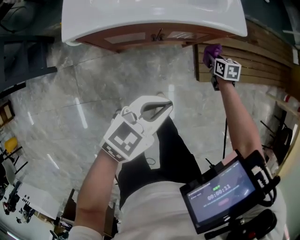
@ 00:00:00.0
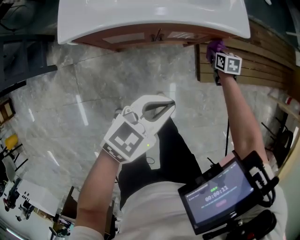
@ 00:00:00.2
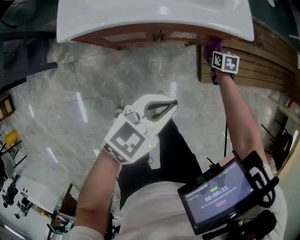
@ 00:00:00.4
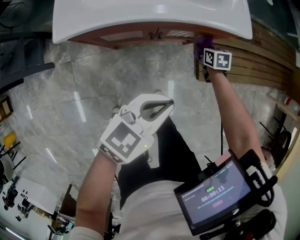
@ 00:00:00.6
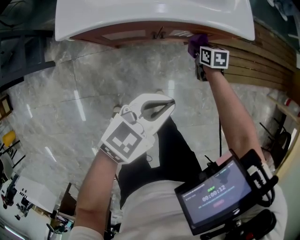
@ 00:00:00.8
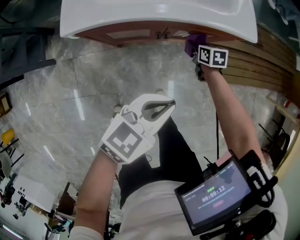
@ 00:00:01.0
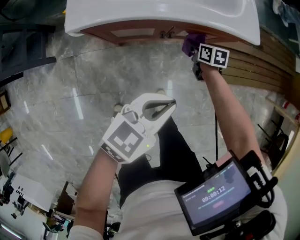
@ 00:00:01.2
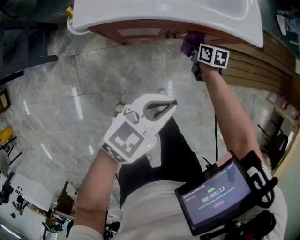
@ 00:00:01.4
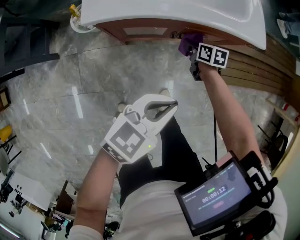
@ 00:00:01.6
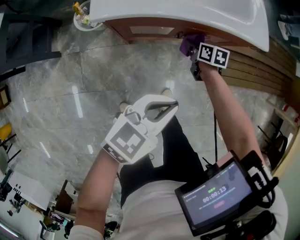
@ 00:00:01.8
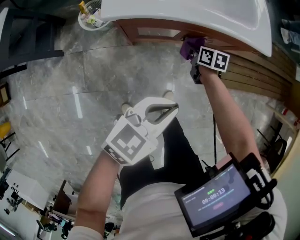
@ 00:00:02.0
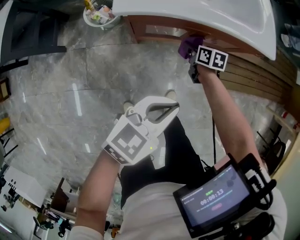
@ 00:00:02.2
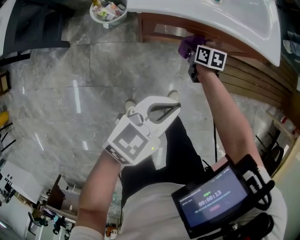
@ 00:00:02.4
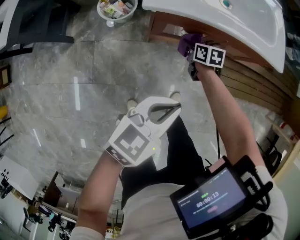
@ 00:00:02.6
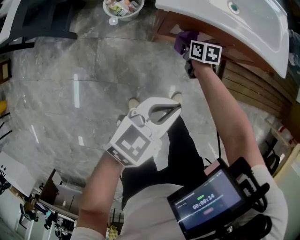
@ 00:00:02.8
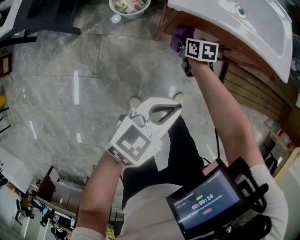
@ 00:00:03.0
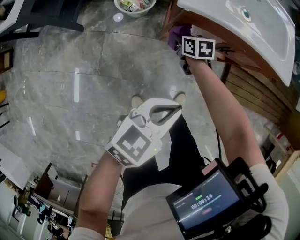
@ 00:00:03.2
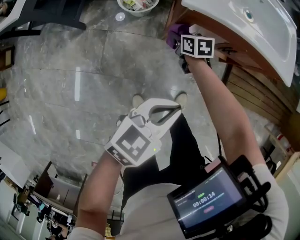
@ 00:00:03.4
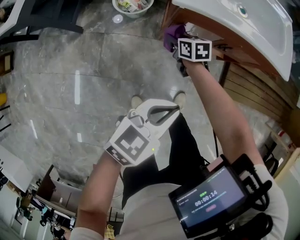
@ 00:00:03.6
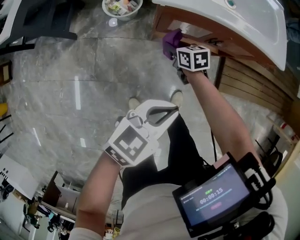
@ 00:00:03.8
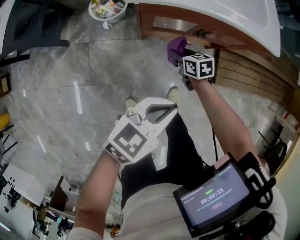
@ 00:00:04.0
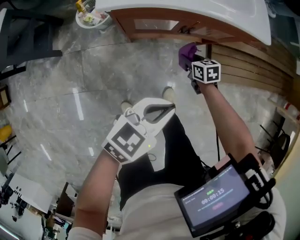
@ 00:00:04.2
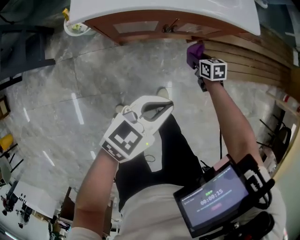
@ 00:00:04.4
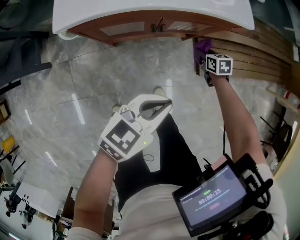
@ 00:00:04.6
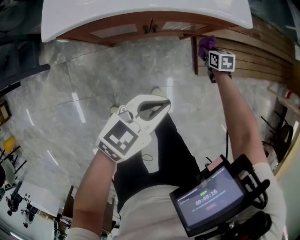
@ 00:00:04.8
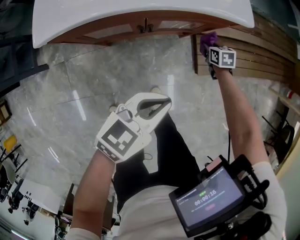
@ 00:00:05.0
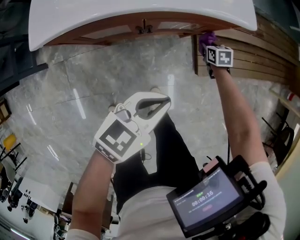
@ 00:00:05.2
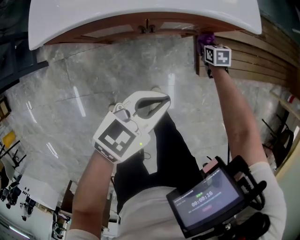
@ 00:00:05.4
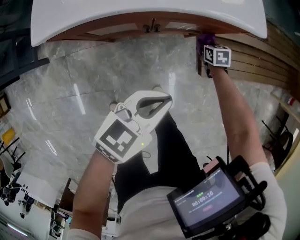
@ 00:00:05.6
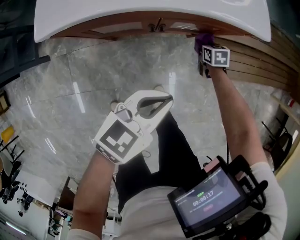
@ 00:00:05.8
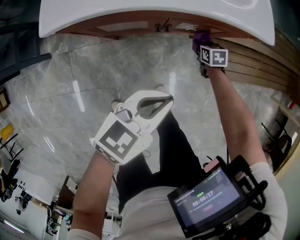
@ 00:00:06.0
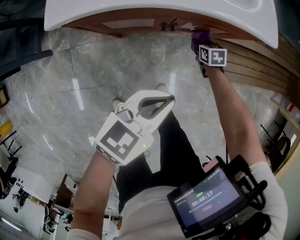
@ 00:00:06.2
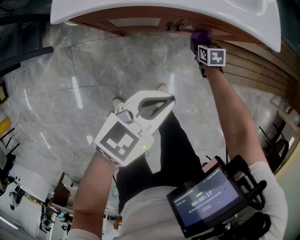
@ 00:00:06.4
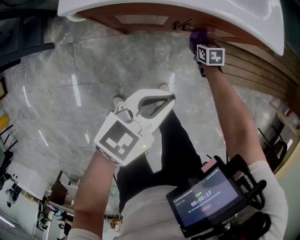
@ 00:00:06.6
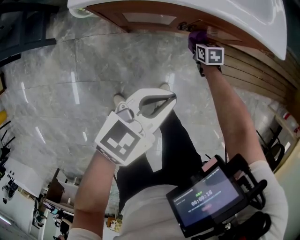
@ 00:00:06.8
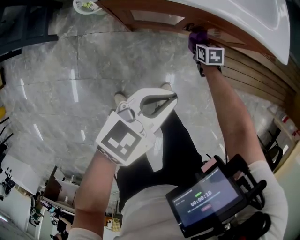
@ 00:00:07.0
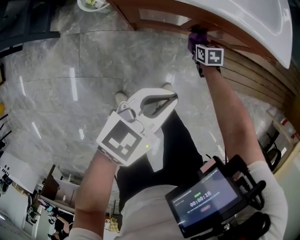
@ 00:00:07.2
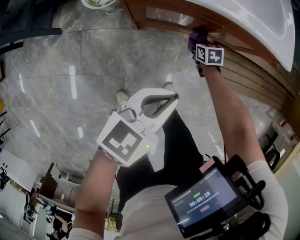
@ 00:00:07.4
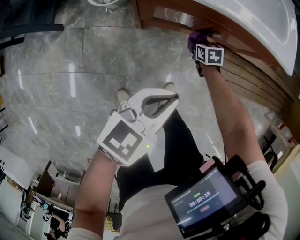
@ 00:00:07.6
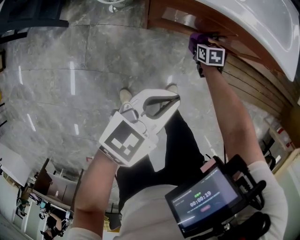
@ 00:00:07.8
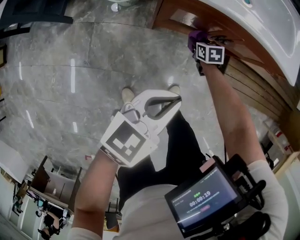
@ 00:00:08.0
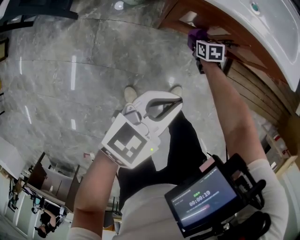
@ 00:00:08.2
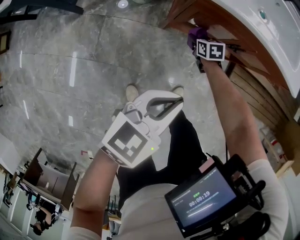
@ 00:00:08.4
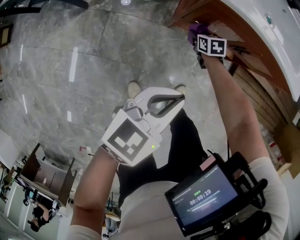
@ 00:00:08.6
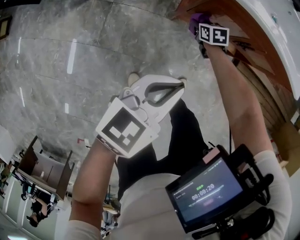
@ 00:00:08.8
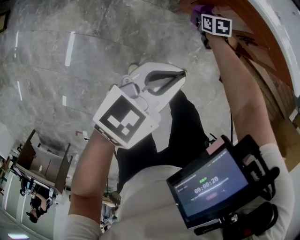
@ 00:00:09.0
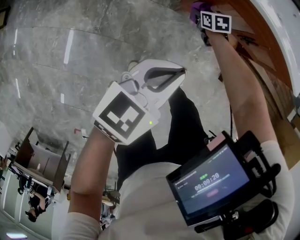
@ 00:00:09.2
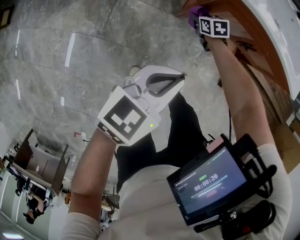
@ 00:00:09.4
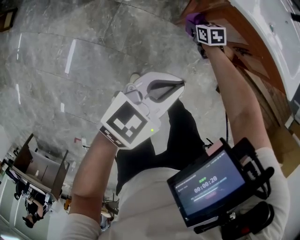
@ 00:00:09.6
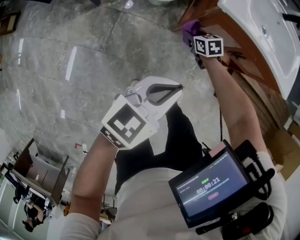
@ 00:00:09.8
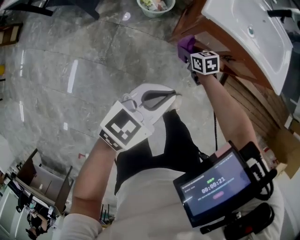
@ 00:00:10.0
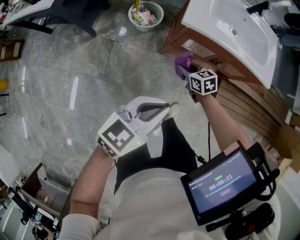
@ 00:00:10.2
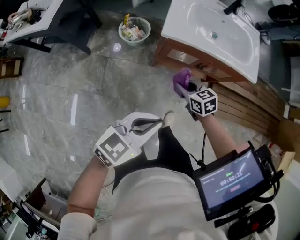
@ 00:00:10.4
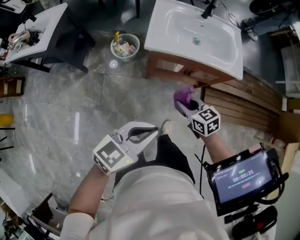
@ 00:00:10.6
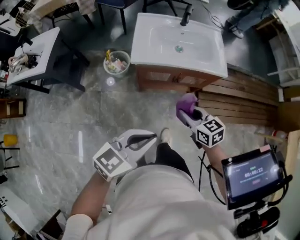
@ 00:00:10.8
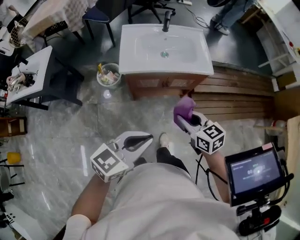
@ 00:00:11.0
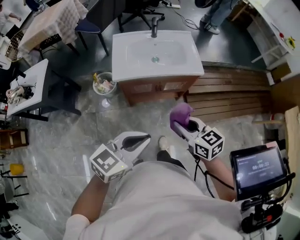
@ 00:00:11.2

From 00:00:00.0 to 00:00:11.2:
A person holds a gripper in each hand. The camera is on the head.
From 00:00:00.0 to 00:00:01.6: The right gripper goes about 20 cm to the left; the left gripper is displaced to the left by approximately 5 cm.
From 00:00:01.6 to 00:00:03.2: The right gripper moves to the left, some 35 cm, and rotates approximately 20 degrees. The left gripper travels to the left by about 20 cm.
From 00:00:03.2 to 00:00:04.8: The right gripper goes about 50 cm to the right, and turns by approximately 20 degrees. The left gripper heads to the right, covering roughly 30 cm.
From 00:00:04.8 to 00:00:06.4: The right gripper moves to the left, some 15 cm. The left gripper travels to the left by roughly 5 cm.
From 00:00:06.4 to 00:00:08.0: The left gripper shifts about 20 cm to the left and backward. The right gripper goes roughly 25 cm to the left.
From 00:00:08.0 to 00:00:09.6: The right gripper heads to the left, covering about 20 cm. The left gripper is displaced to the left by some 15 cm.
From 00:00:09.6 to 00:00:11.2: The right gripper travels upward by roughly 60 cm, and changes its angle by some 40 degrees; the left gripper goes roughly 30 cm upward, and changes its angle by roughly 30 degrees.

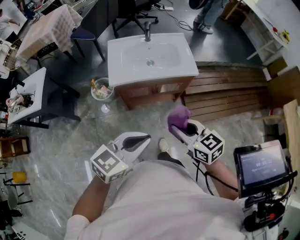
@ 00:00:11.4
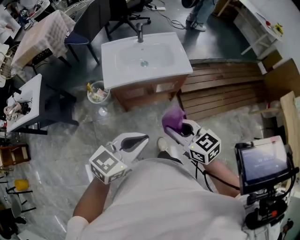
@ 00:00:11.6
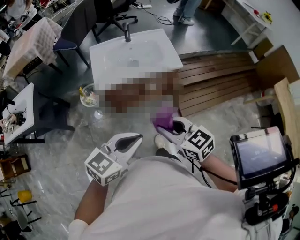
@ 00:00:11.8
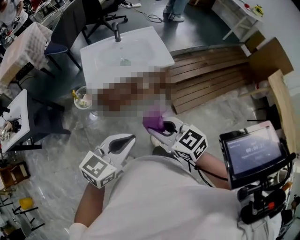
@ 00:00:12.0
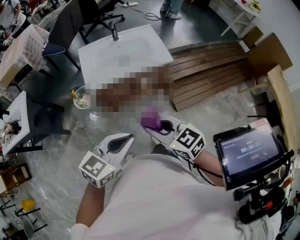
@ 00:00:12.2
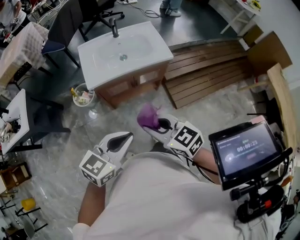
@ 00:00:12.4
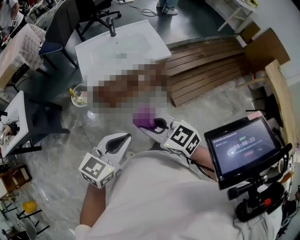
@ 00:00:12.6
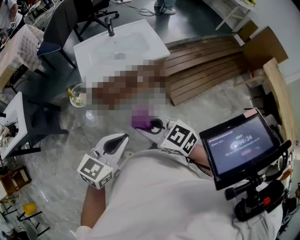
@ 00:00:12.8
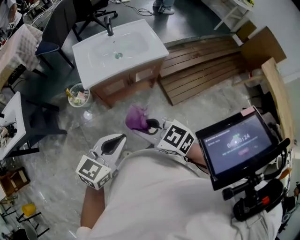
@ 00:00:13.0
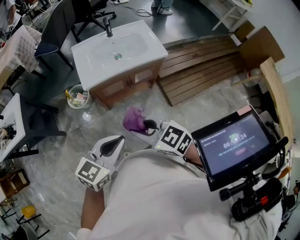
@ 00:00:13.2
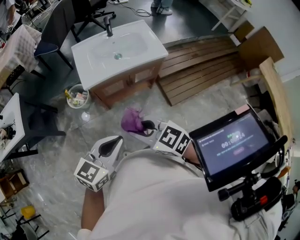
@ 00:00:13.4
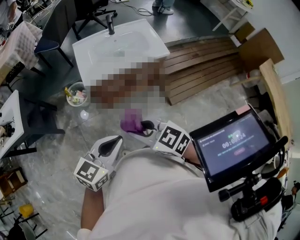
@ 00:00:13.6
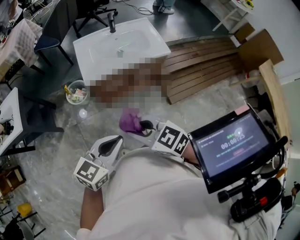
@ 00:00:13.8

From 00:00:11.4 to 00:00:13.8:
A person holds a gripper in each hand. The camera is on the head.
From 00:00:11.4 to 00:00:12.6: The right gripper goes some 10 cm to the left and backward.
From 00:00:12.6 to 00:00:13.8: The two grippers go some 10 cm to the left.

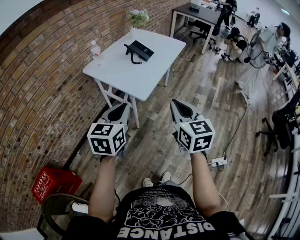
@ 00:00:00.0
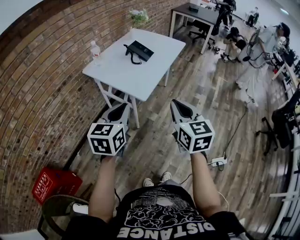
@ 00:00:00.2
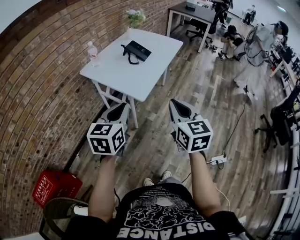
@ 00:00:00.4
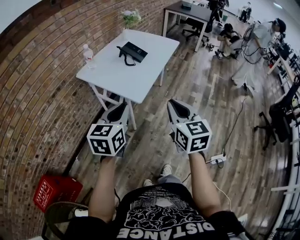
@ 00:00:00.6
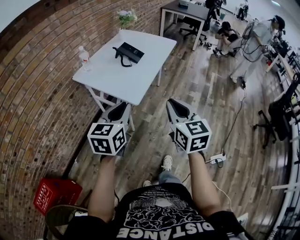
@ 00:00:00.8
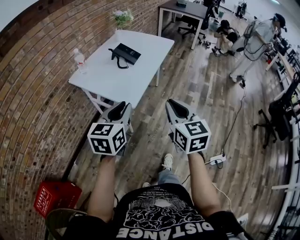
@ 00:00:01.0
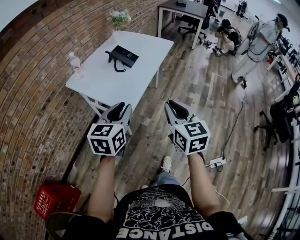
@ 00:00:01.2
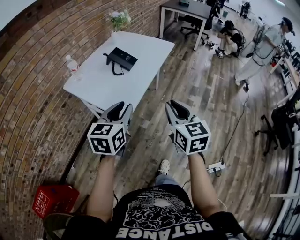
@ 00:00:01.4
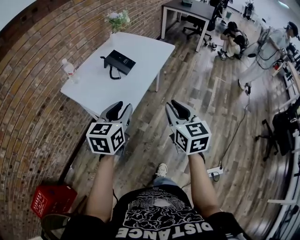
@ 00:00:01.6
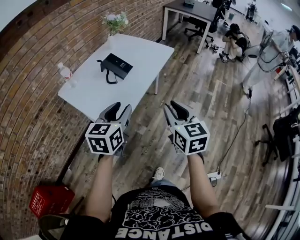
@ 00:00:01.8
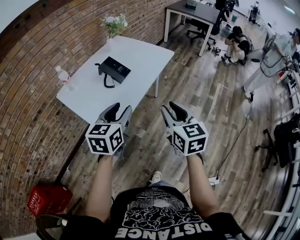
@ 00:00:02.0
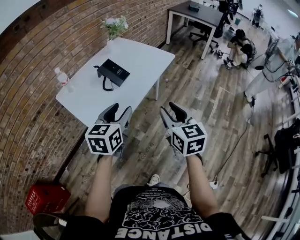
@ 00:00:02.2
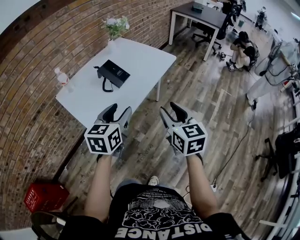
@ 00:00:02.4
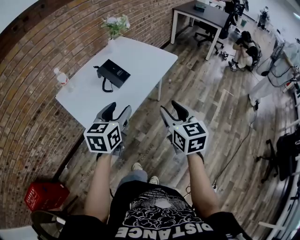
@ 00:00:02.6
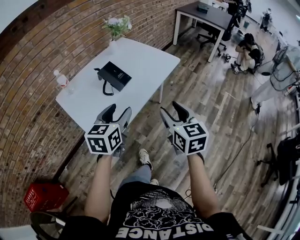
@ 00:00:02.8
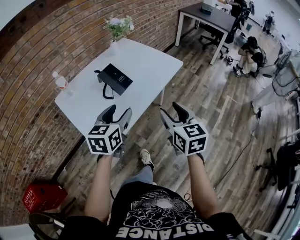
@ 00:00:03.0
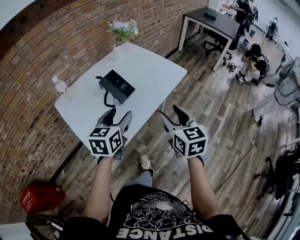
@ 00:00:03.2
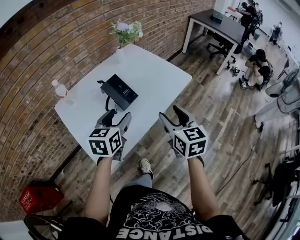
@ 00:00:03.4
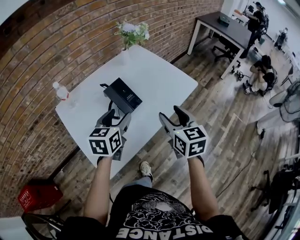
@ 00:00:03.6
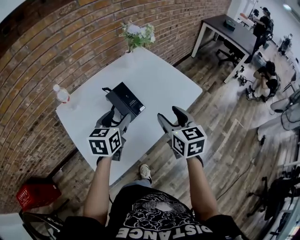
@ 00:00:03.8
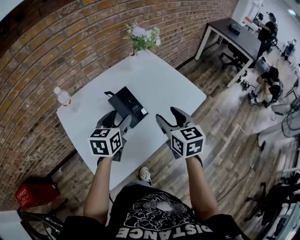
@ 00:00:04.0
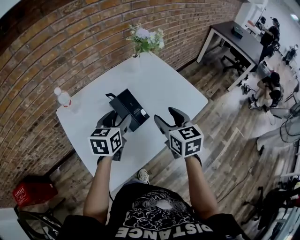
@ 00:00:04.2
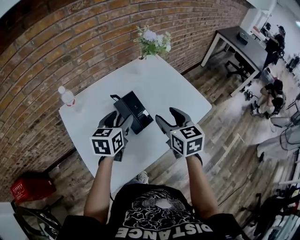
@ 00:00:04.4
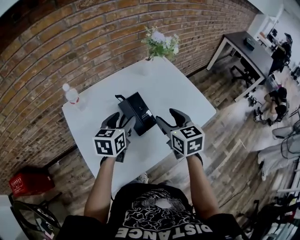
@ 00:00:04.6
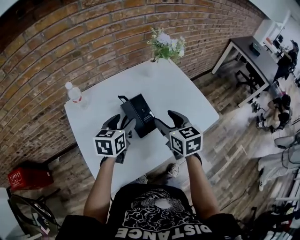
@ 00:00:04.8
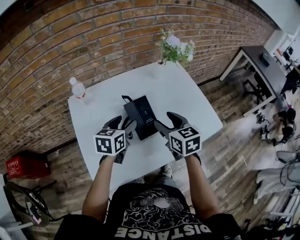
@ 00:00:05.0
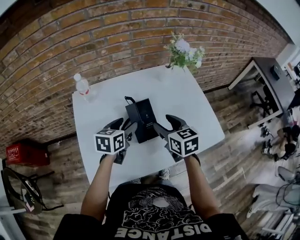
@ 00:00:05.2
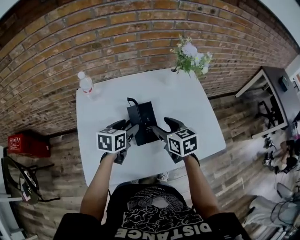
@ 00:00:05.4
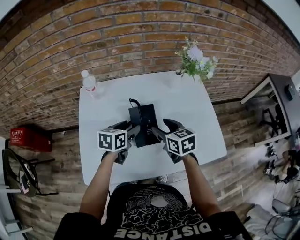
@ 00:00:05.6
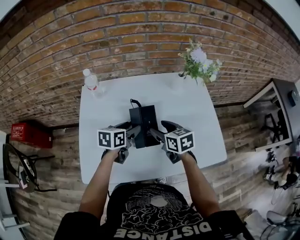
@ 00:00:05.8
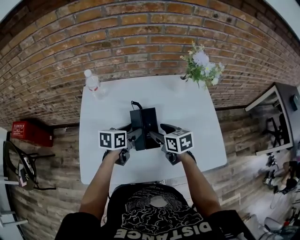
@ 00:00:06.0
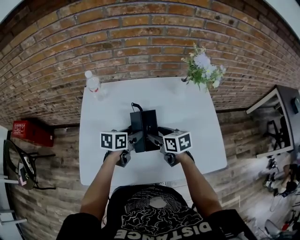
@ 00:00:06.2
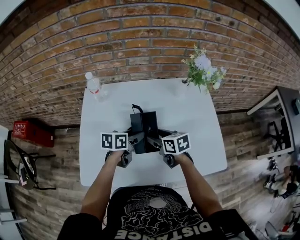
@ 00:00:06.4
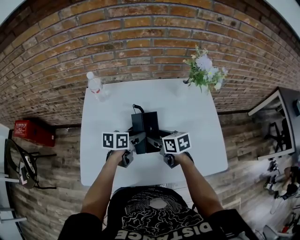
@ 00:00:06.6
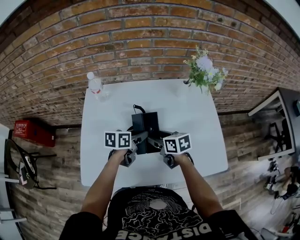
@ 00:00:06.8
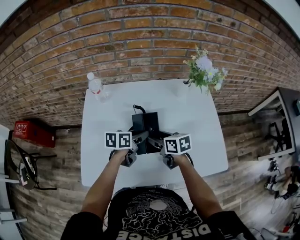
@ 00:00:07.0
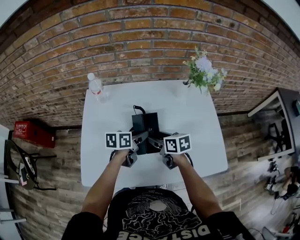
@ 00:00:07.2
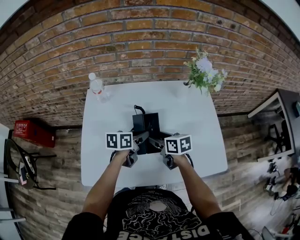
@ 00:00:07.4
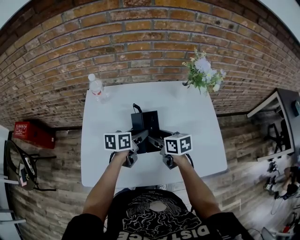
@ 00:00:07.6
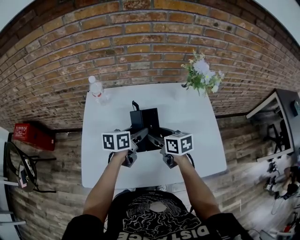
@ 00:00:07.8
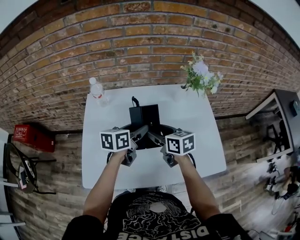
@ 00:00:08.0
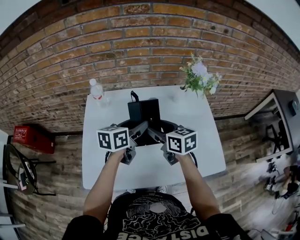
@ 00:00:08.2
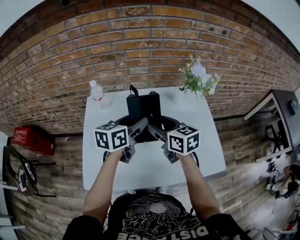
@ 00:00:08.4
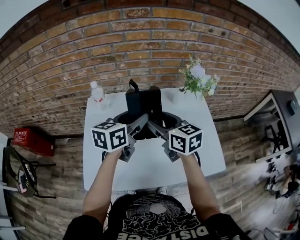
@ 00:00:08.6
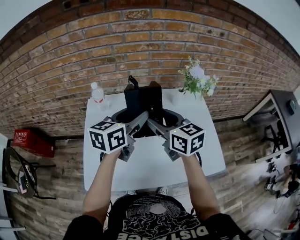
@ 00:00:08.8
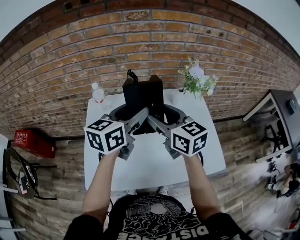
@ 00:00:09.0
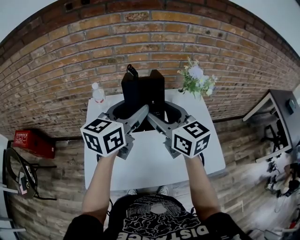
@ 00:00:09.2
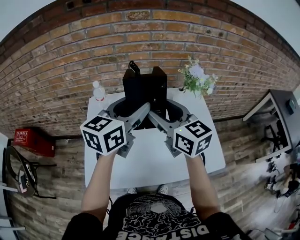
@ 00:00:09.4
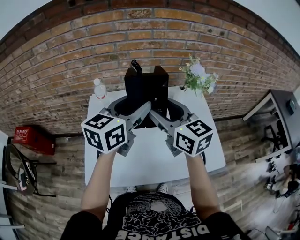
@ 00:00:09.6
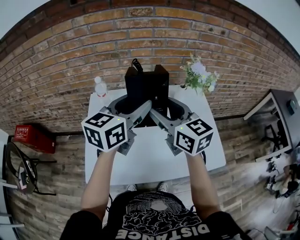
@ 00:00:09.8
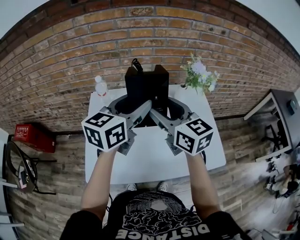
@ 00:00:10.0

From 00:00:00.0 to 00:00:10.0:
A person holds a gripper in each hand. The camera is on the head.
From 00:00:00.0 to 00:00:01.4: The grippers both shift forward and to the right by roughly 15 cm.
From 00:00:01.4 to 00:00:02.8: Both grippers move forward and to the right, about 20 cm. The right gripper opens its fingers. Meanwhile the left gripper opens.
From 00:00:02.8 to 00:00:04.2: Both grippers move forward, some 30 cm.
From 00:00:04.2 to 00:00:05.8: The right gripper changes place by some 20 cm, and rotates roughly 40 degrees. Meanwhile the left gripper moves downward, approximately 10 cm, and swivels approximately 30 degrees.
From 00:00:05.8 to 00:00:07.2: The right gripper ends up approximately 5 cm from where it was.
From 00:00:07.2 to 00:00:08.6: Both grippers travel together upward, approximately 20 cm. The right gripper turns by about 30 degrees, while the left gripper turns by about 30 degrees.
From 00:00:08.6 to 00:00:10.0: The grippers both shift upward by about 10 cm.
